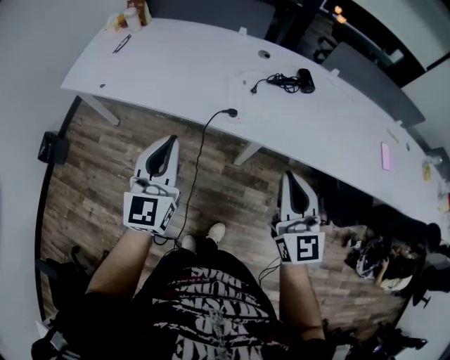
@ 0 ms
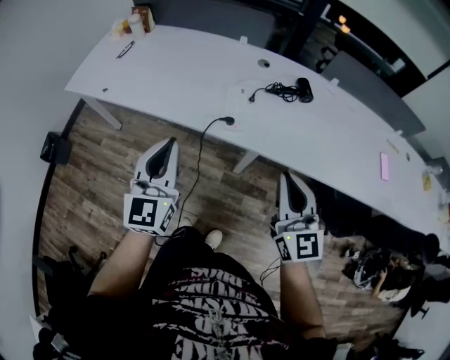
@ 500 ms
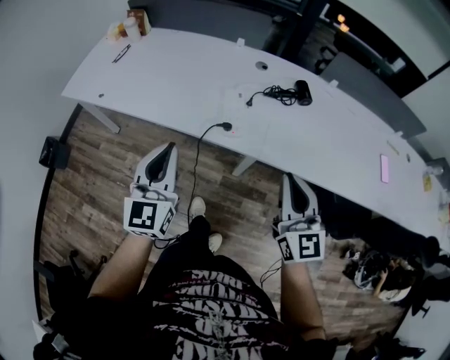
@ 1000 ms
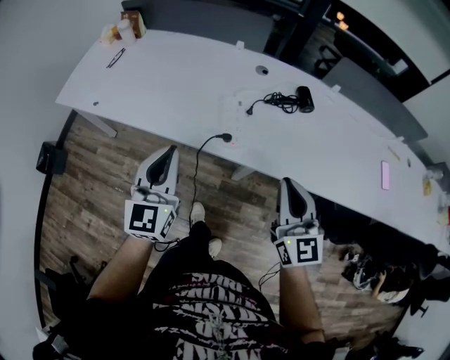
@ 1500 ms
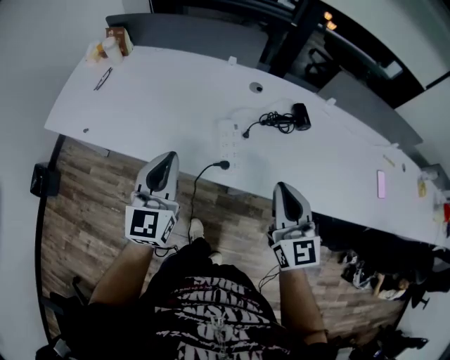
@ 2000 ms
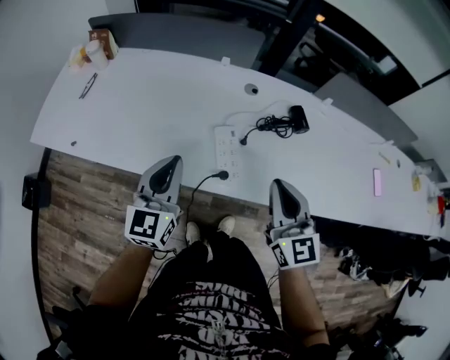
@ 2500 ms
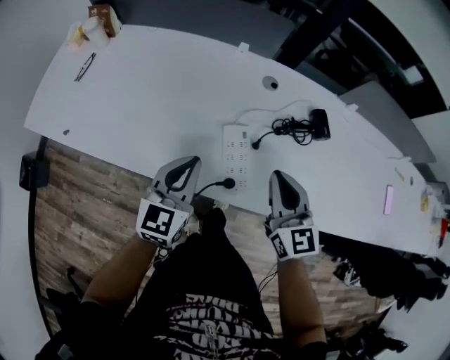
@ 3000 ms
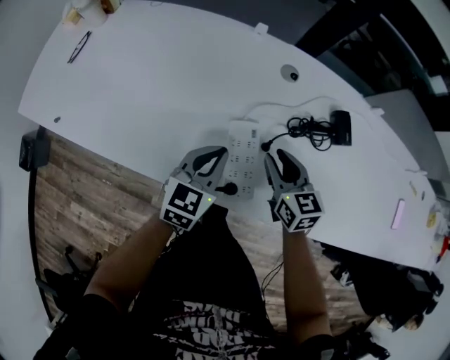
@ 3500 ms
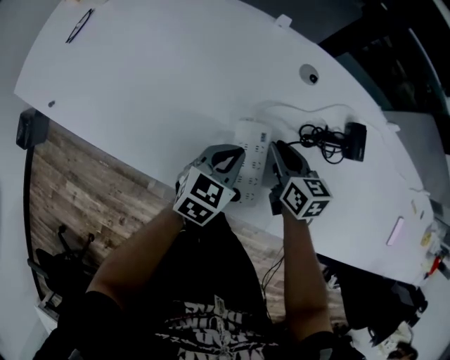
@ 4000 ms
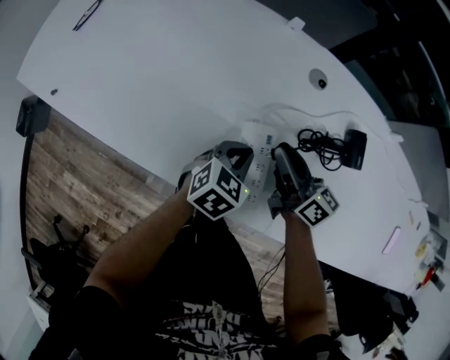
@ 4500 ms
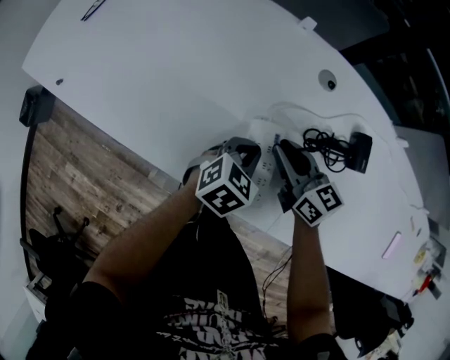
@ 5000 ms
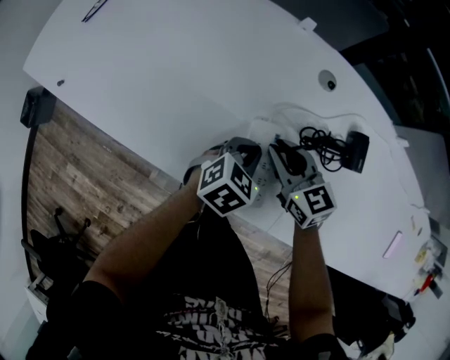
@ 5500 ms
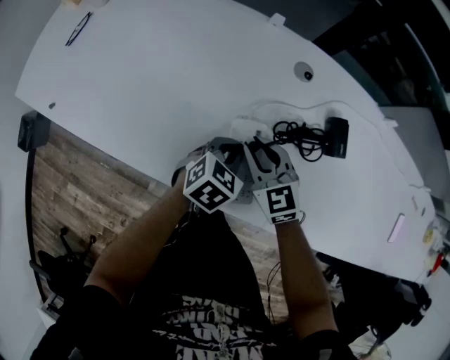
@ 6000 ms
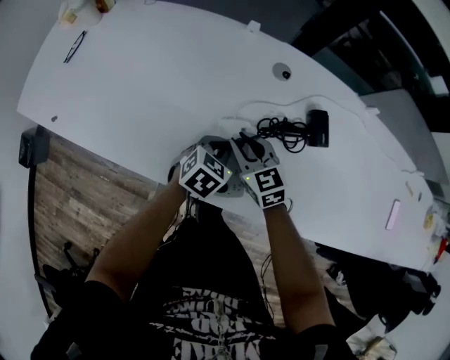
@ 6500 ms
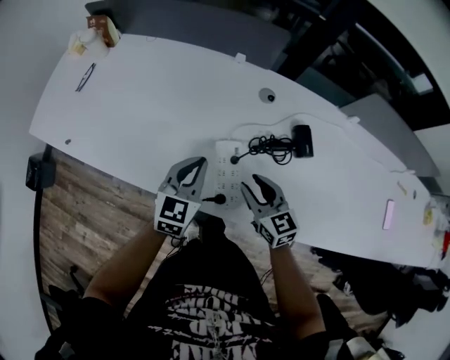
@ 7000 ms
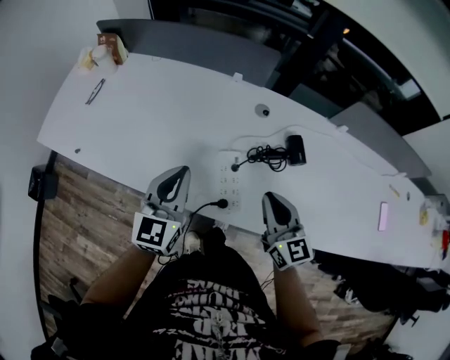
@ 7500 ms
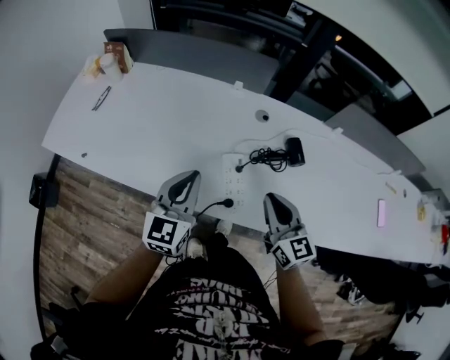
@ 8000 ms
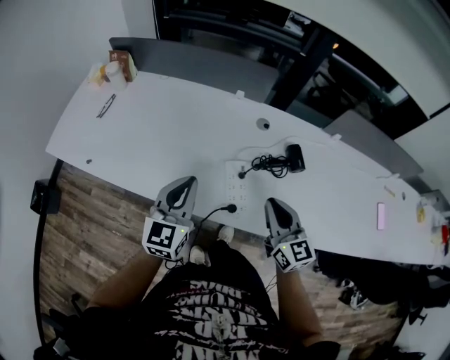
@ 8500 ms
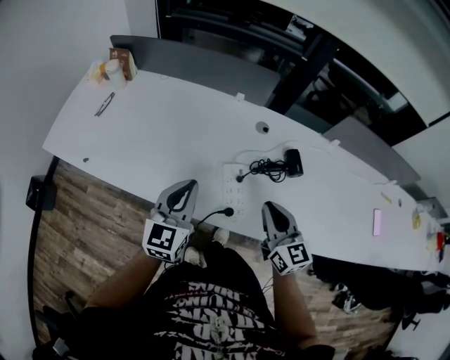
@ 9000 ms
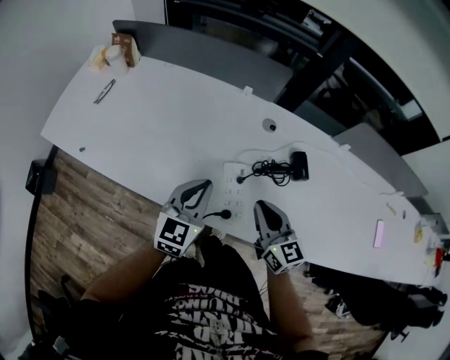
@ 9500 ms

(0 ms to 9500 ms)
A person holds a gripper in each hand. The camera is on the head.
0 ms - 2000 ms: The two grippers go roughly 15 cm forward.
2000 ms - 4000 ms: The right gripper travels downward and forward by about 40 cm, and tilts its fingers about 30 degrees downward, while the left gripper travels downward, forward and to the right by approximately 35 cm, and angles its fingers downward, by about 30 degrees.
4000 ms - 5500 ms: The right gripper heads to the left, covering about 5 cm, and rotates some 30 degrees.
5500 ms - 7500 ms: The left gripper is displaced upward and to the left by approximately 25 cm, and tips its fingers upward by about 40 degrees. Meanwhile the right gripper goes roughly 20 cm upward, backward and to the right, and changes its angle by some 30 degrees.
7500 ms - 9500 ms: The left gripper shifts by some 5 cm.

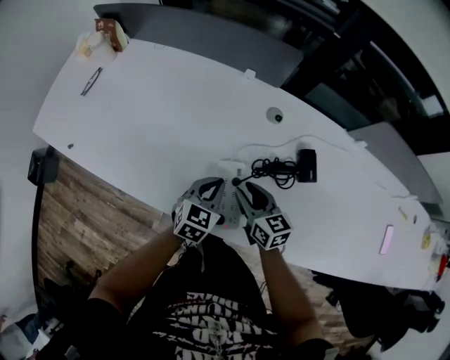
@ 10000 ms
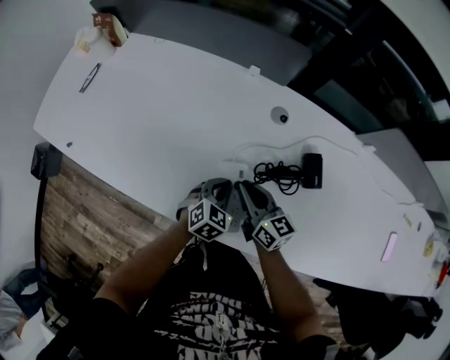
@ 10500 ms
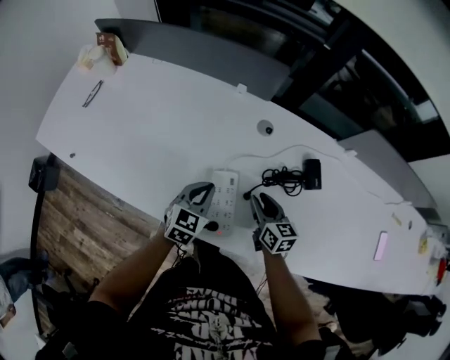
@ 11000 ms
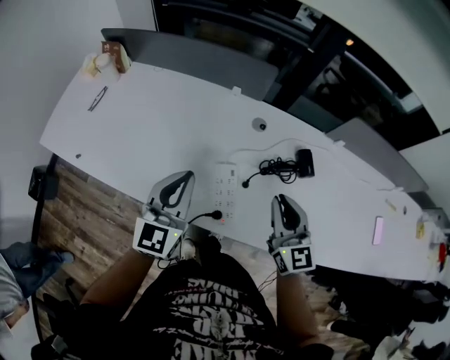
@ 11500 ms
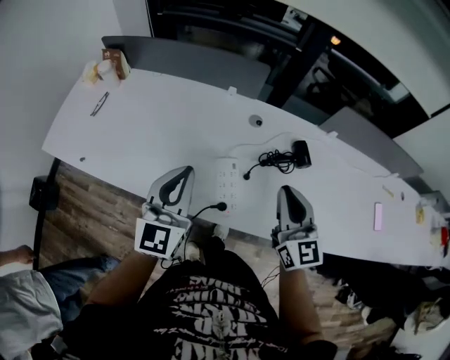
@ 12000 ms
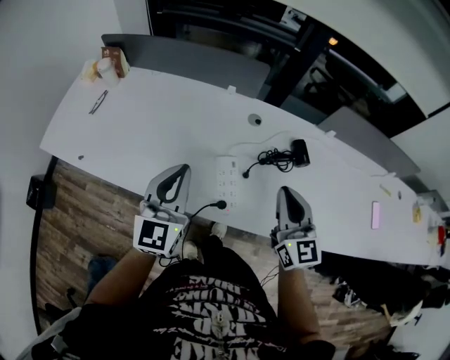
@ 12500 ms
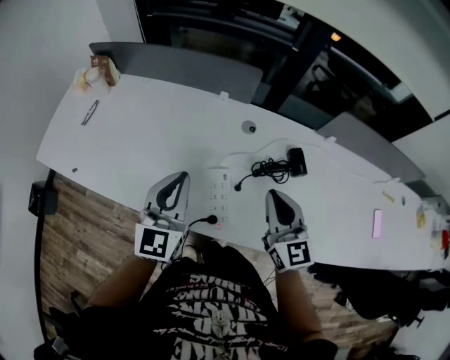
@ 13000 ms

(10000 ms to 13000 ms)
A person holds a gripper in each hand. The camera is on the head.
10000 ms - 11500 ms: The left gripper goes some 25 cm upward, and rotates some 30 degrees. Meanwhile the right gripper travels upward and to the right by roughly 20 cm, and changes its angle by about 30 degrees.

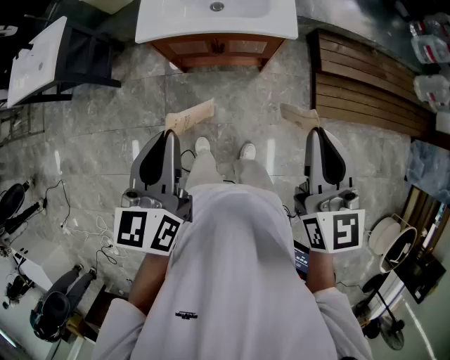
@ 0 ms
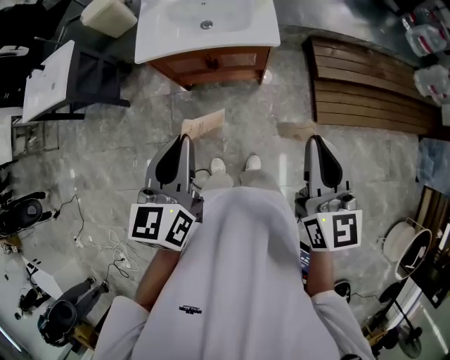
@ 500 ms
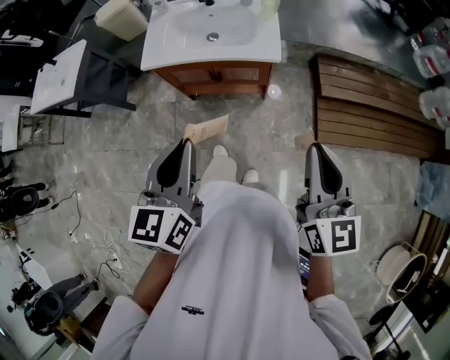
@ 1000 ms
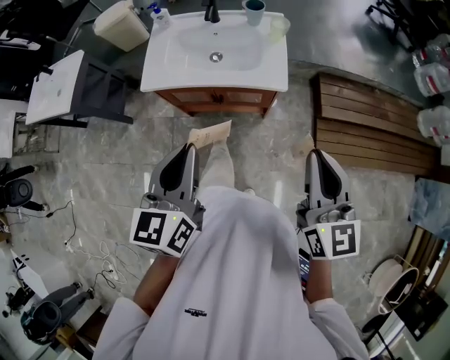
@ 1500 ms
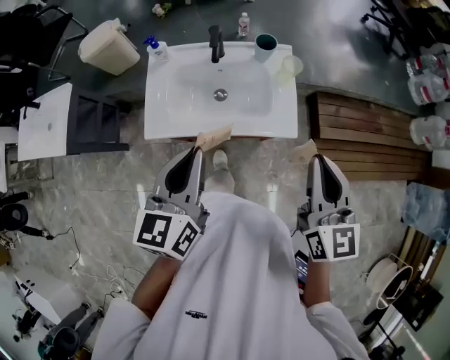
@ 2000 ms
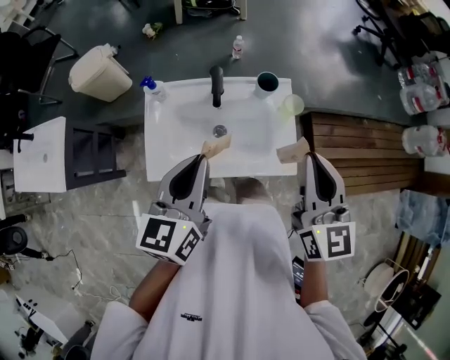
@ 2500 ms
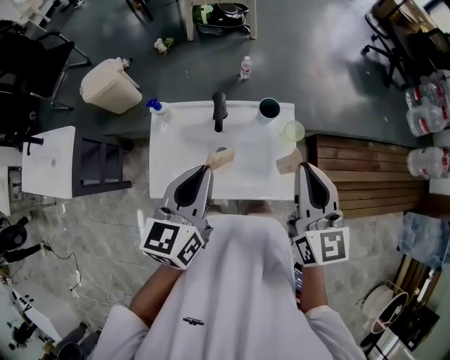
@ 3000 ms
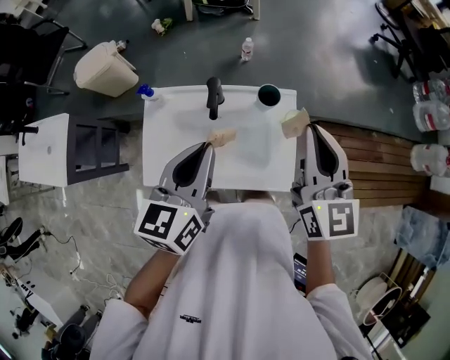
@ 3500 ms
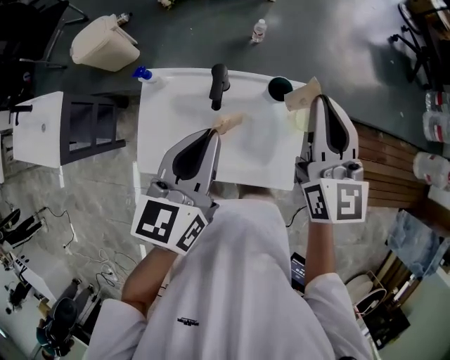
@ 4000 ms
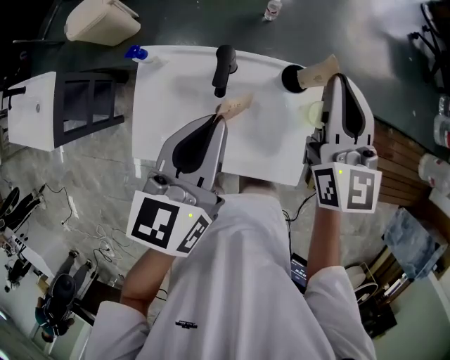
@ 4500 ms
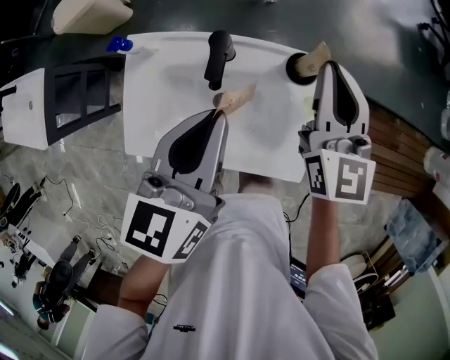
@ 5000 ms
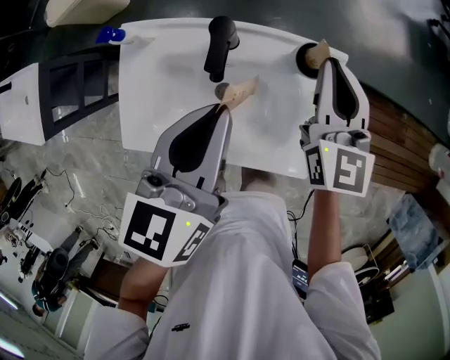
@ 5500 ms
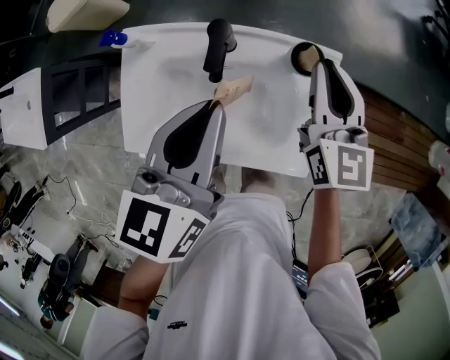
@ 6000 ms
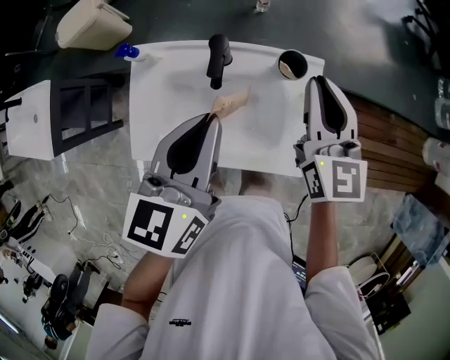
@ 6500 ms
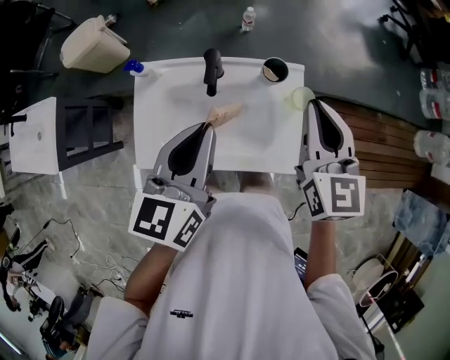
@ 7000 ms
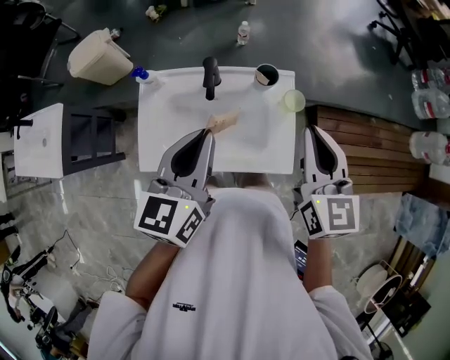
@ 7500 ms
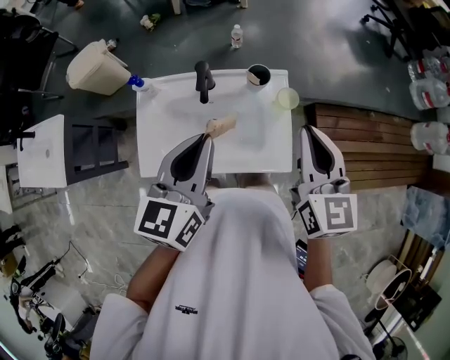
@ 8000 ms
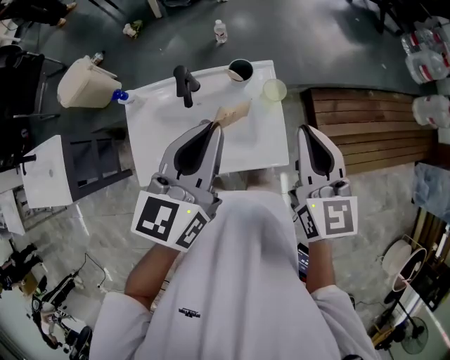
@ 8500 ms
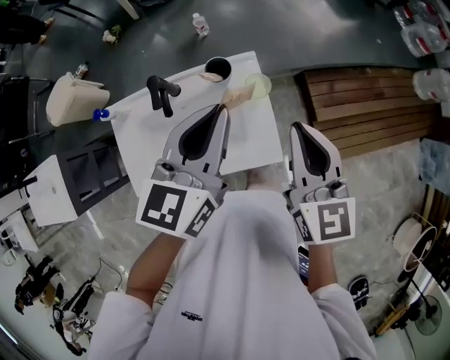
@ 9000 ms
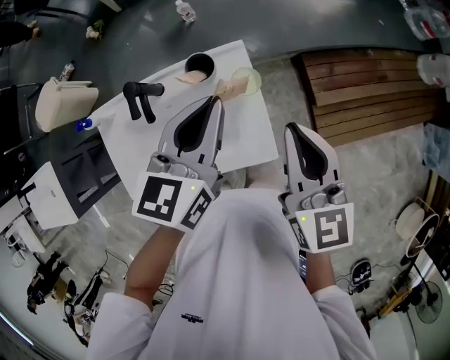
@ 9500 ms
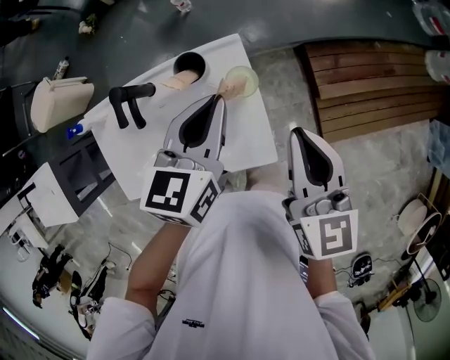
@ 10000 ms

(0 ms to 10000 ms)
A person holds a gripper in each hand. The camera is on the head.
0 ms - 2000 ms: Both grippers travel together forward, about 30 cm.
2000 ms - 4000 ms: The two grippers go roughly 30 cm forward.
4000 ms - 6000 ms: The left gripper goes about 10 cm downward. Meanwhile the right gripper travels downward by about 15 cm.
6000 ms - 8000 ms: The right gripper moves backward and upward, roughly 25 cm, while the left gripper moves backward and upward, approximately 15 cm.
8000 ms - 10000 ms: The left gripper is displaced forward, to the right and downward by about 25 cm. The right gripper shifts approximately 15 cm downward, to the right and forward.

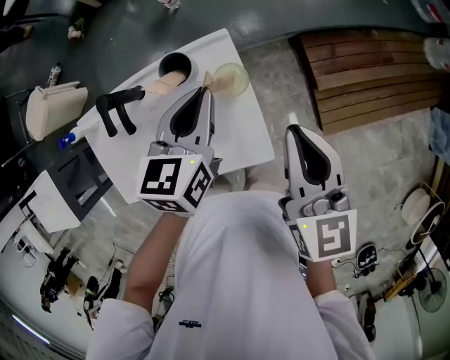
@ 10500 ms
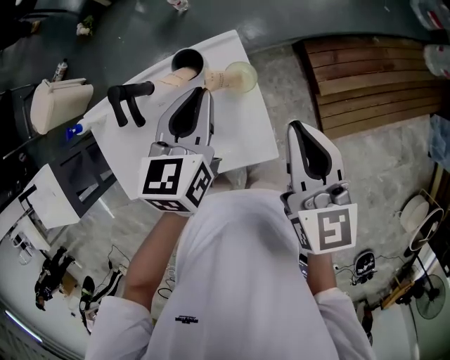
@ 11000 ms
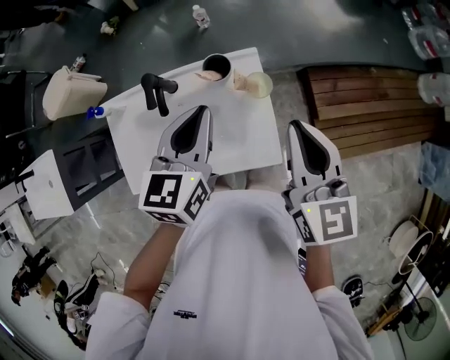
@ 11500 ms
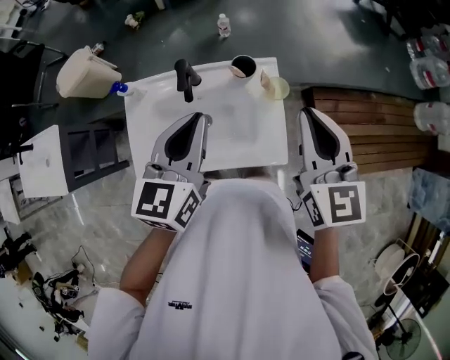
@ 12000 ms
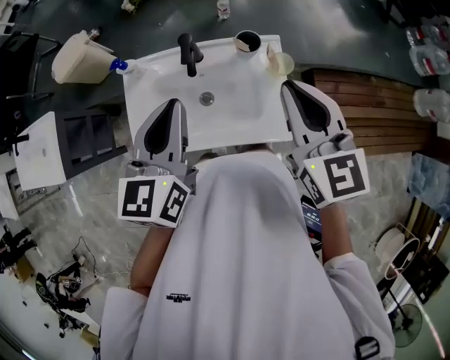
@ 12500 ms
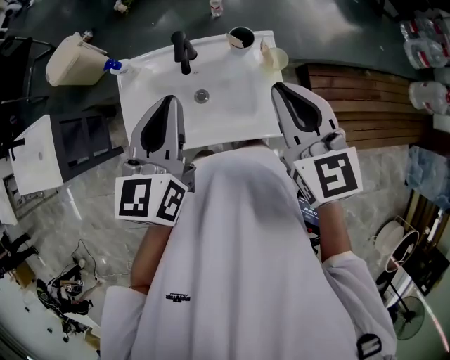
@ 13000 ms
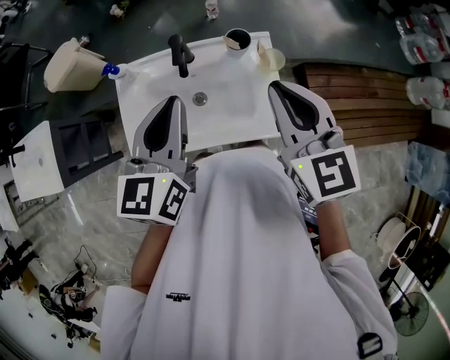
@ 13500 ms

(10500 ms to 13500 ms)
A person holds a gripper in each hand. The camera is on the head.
10500 ms - 12000 ms: The right gripper moves upward and to the left, about 15 cm; the left gripper heads upward, to the left and backward, covering roughly 25 cm.
12000 ms - 13500 ms: The two grippers go about 5 cm to the left.
